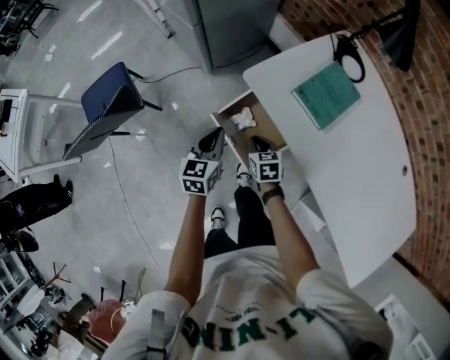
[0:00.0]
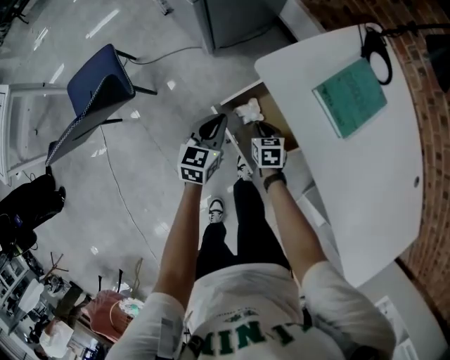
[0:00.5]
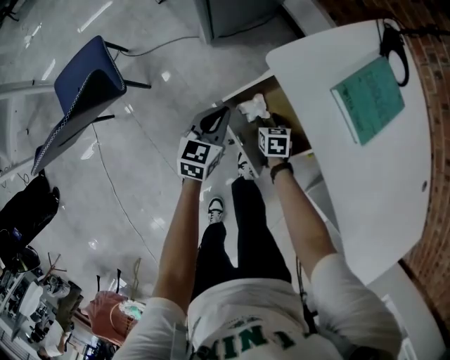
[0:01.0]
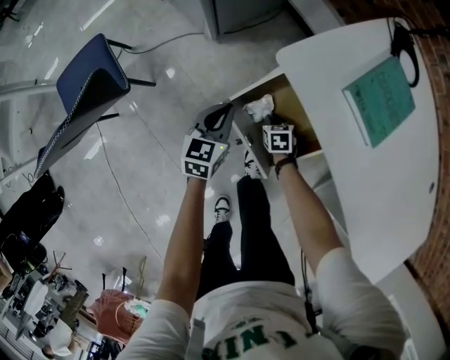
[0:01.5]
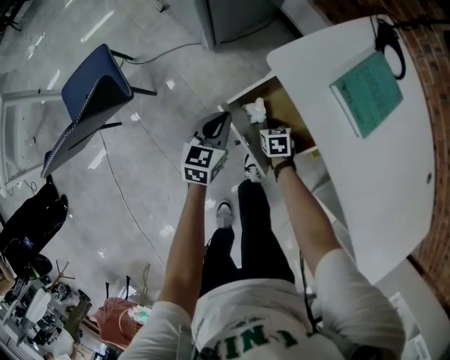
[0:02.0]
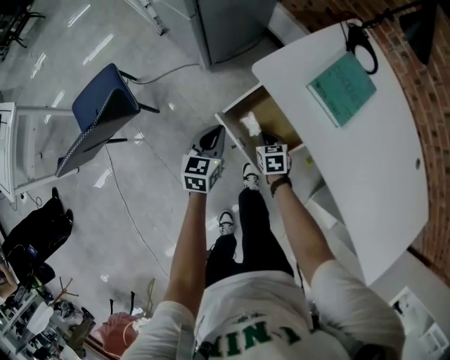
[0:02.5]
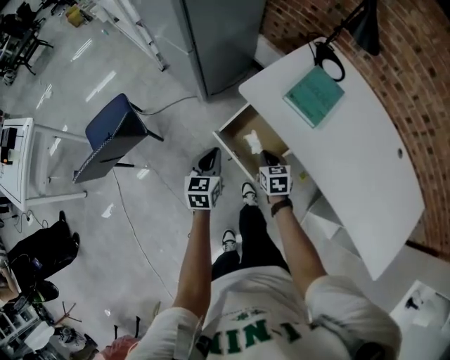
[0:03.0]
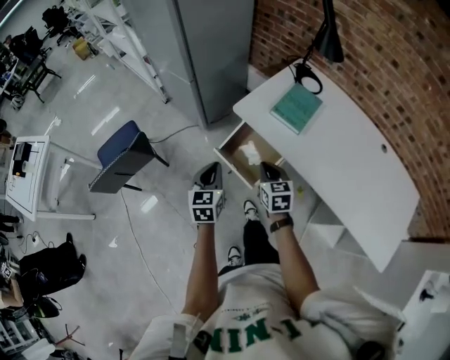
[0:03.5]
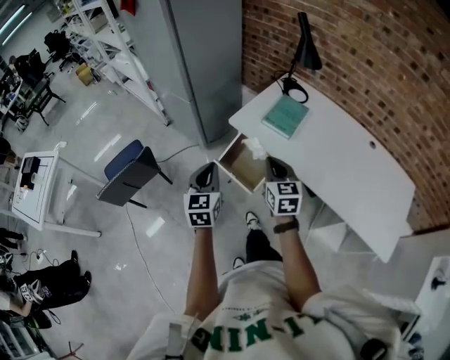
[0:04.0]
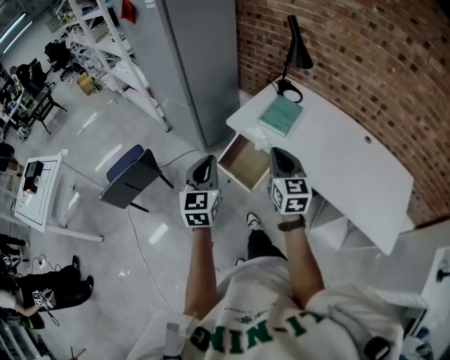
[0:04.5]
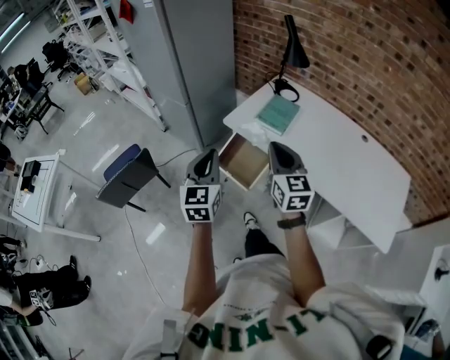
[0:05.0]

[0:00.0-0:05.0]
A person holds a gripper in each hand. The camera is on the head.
0:00.0 to 0:02.5: Both grippers move downward, approximately 10 cm. The right gripper opens, then closes again.
0:02.5 to 0:05.0: Both grippers move upward and backward, roughly 50 cm. The right gripper tips its fingers upward by about 50 degrees; the left gripper turns by approximately 30 degrees.

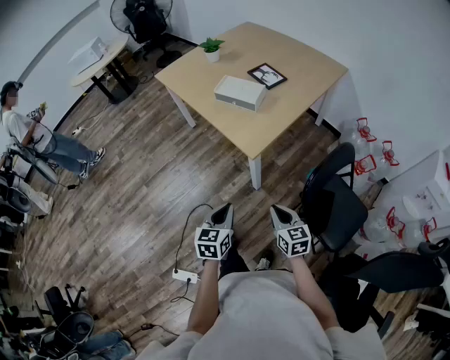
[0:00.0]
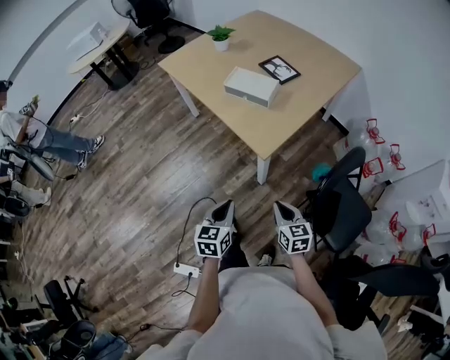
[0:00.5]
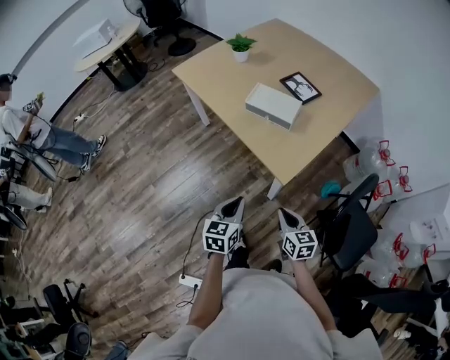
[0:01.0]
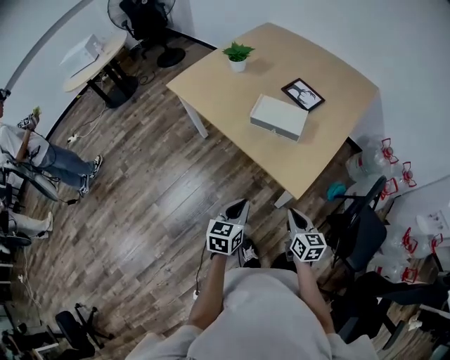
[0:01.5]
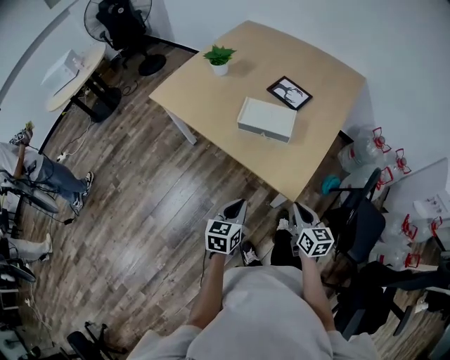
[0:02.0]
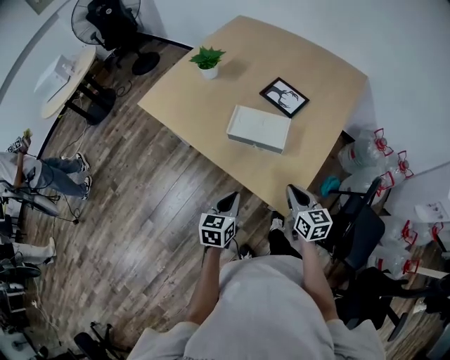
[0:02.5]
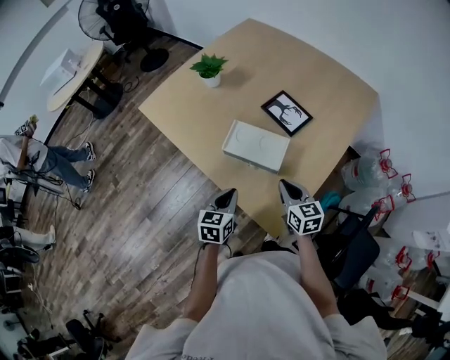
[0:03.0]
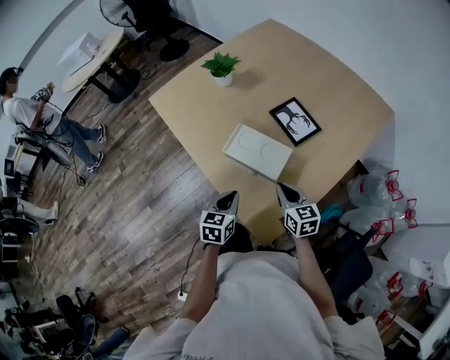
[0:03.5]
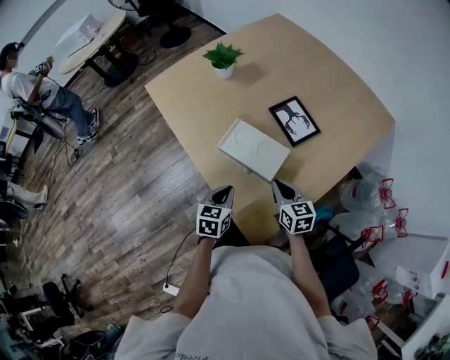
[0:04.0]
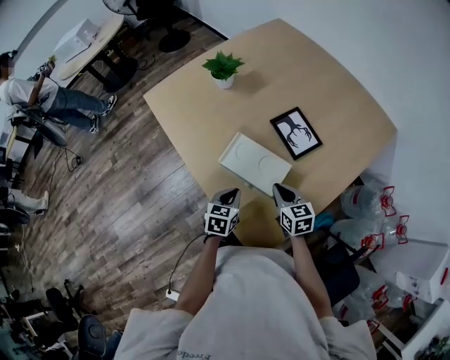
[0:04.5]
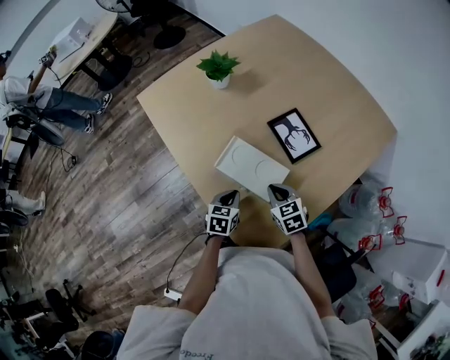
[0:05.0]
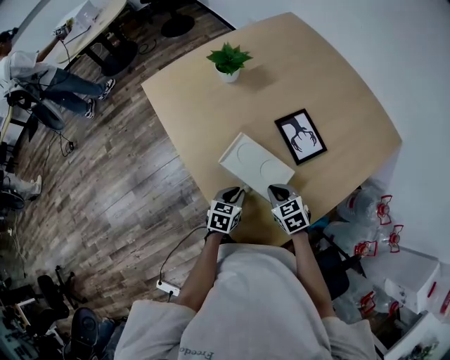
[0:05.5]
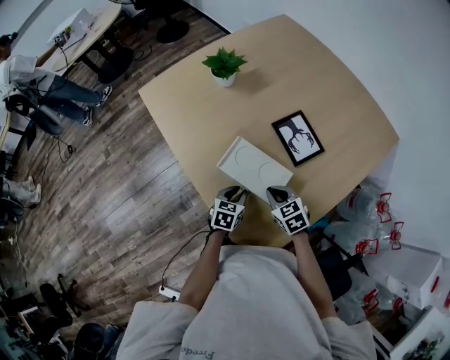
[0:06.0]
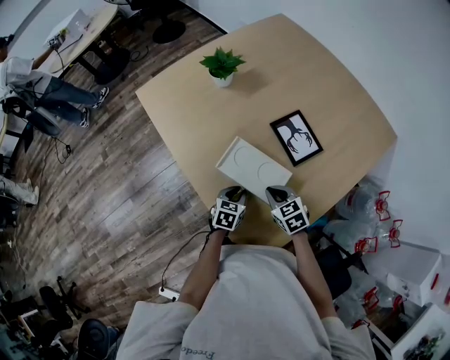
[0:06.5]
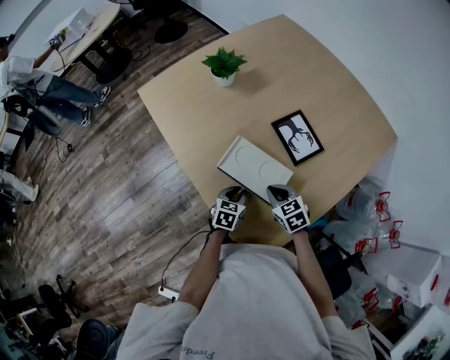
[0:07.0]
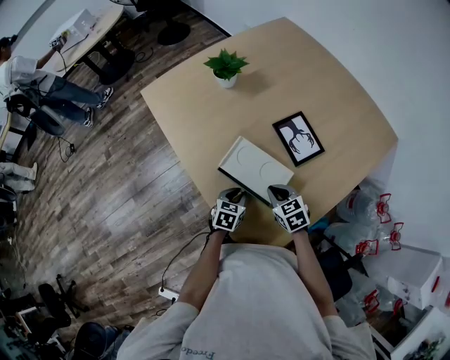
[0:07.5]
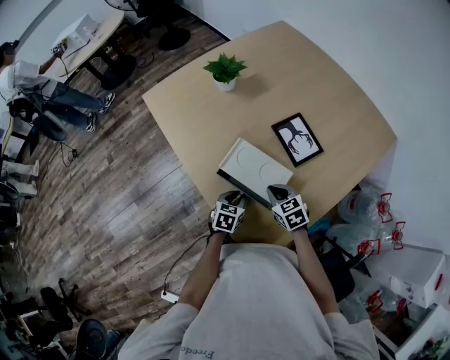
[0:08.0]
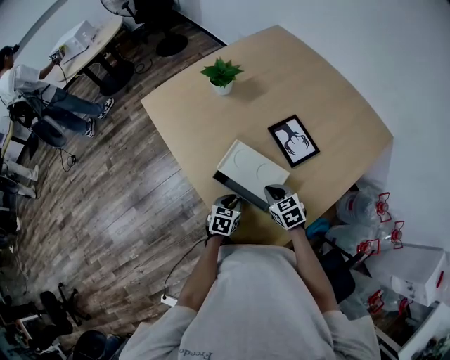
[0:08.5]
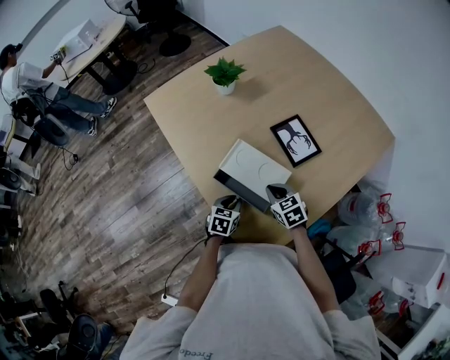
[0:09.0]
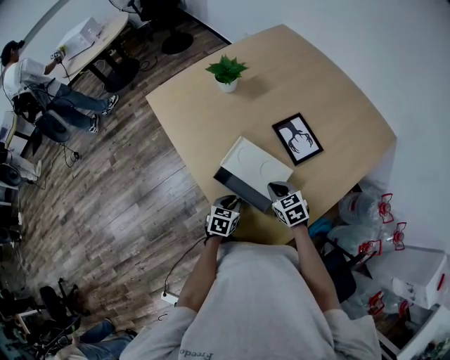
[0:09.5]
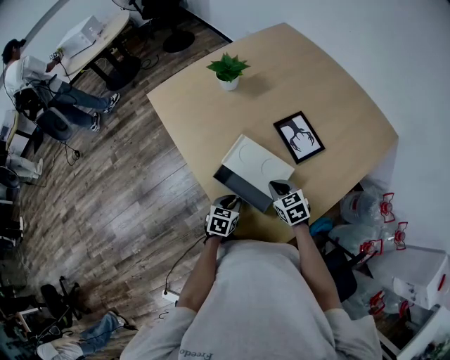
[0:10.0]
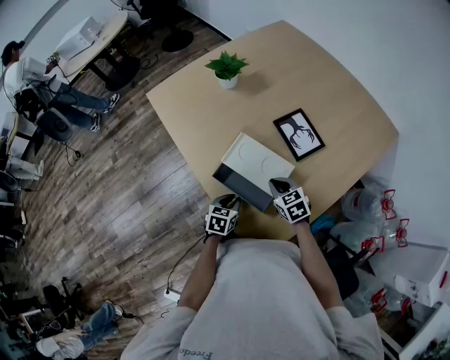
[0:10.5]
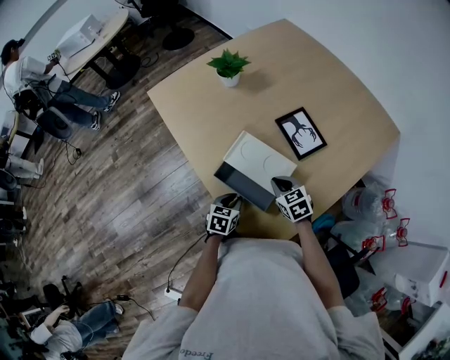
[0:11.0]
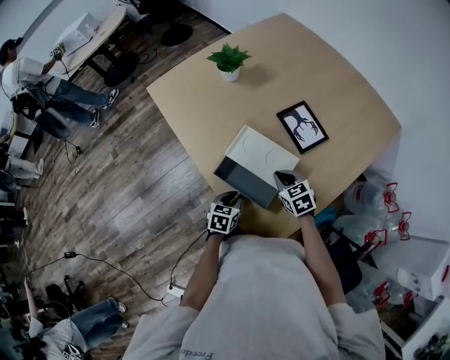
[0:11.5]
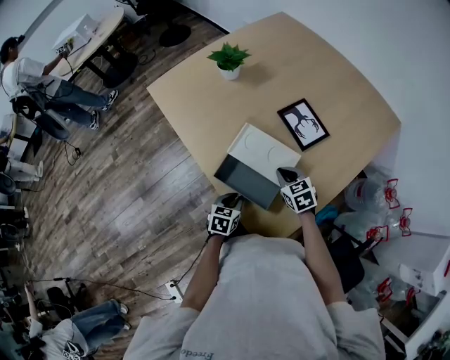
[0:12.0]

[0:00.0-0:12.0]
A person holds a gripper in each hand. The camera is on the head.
0:00.0 to 0:02.0: Both grippers travel together forward and to the left, about 30 cm. The right gripper changes its angle by approximately 20 degrees.
0:02.0 to 0:04.0: The right gripper is displaced forward by some 30 cm, and swivels some 20 degrees. The left gripper shifts approximately 25 cm forward and to the right.
0:04.0 to 0:06.0: The left gripper shifts approximately 10 cm downward and forward, and opens up. Meanwhile the right gripper is displaced forward by about 5 cm, and swivels some 30 degrees.
0:06.0 to 0:10.0: There are only small adjustments of the grippers.
0:10.0 to 0:12.0: The grippers make only small movements.

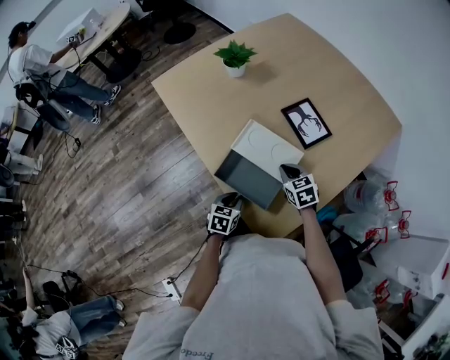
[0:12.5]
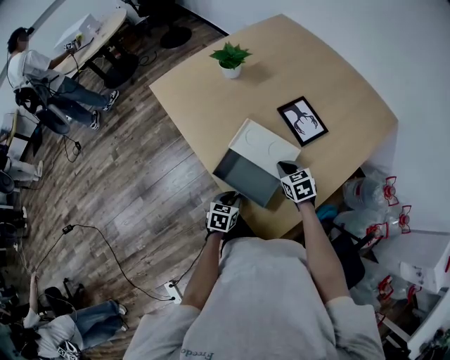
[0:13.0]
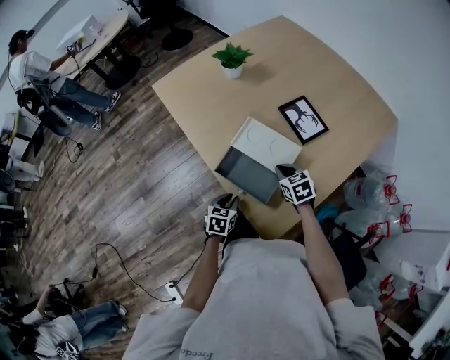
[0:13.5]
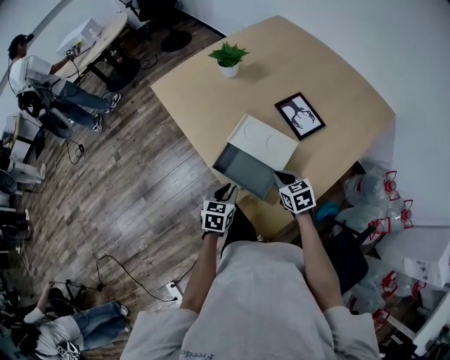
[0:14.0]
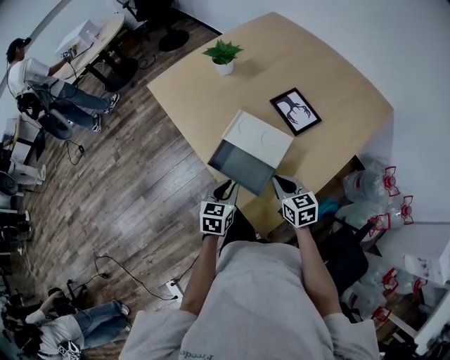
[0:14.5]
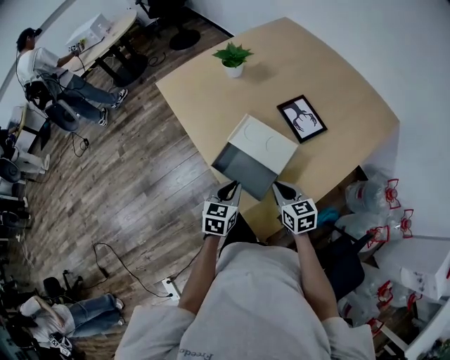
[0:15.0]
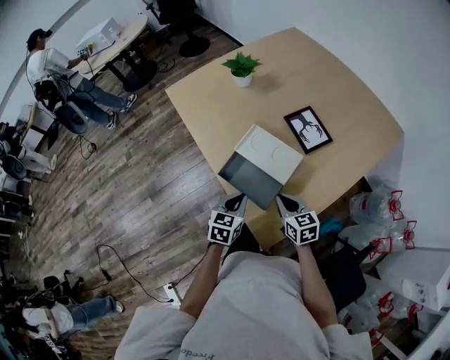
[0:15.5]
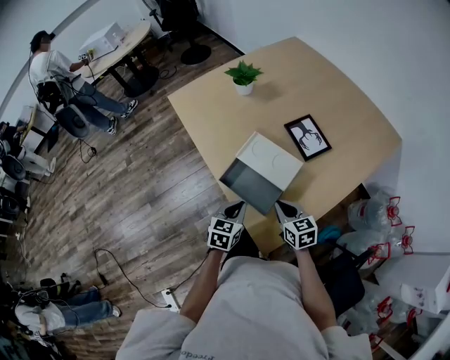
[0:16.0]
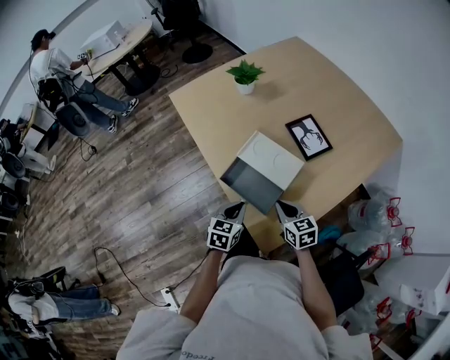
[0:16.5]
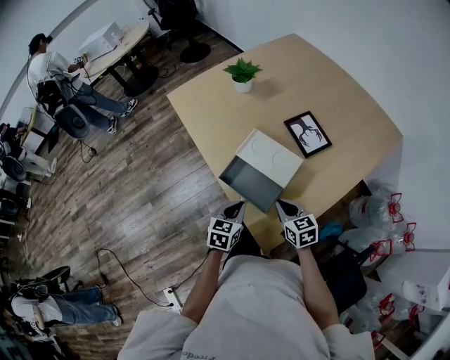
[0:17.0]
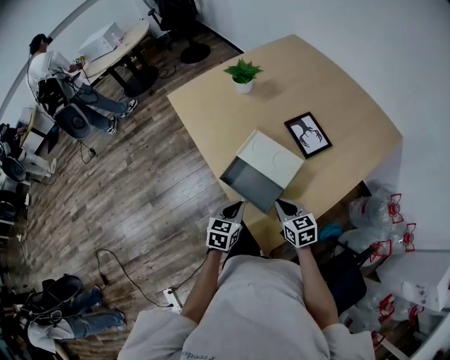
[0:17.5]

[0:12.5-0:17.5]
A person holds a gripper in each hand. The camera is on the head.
0:12.5 to 0:15.0: The right gripper moves backward, about 10 cm. The left gripper moves upward, some 10 cm.
0:15.0 to 0:17.5: The grippers stay close to where they were, moving slightly.

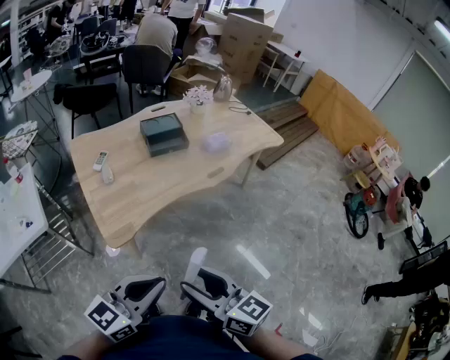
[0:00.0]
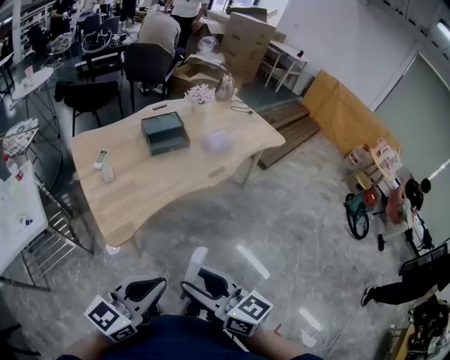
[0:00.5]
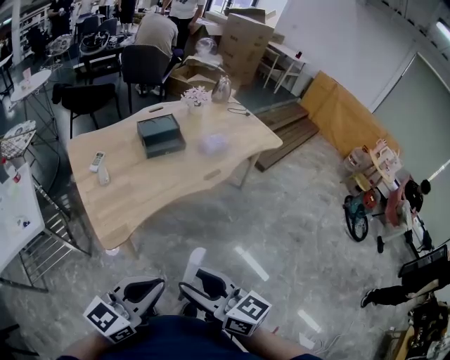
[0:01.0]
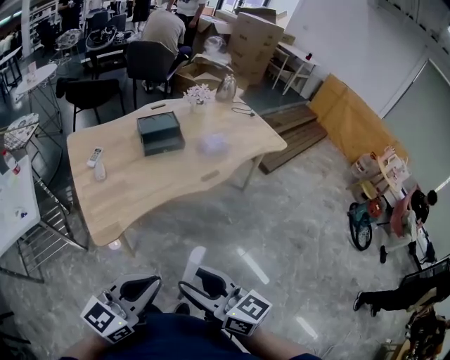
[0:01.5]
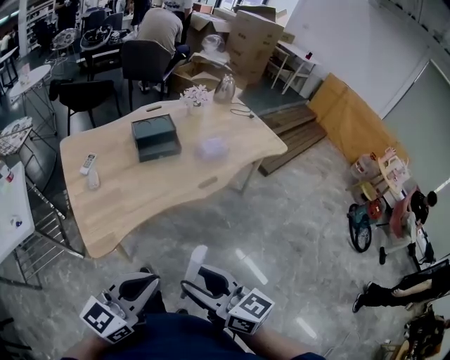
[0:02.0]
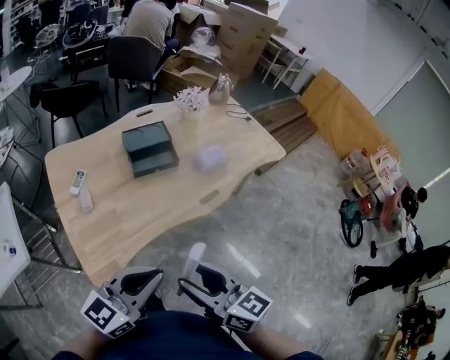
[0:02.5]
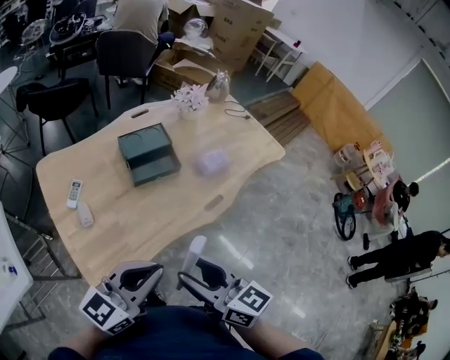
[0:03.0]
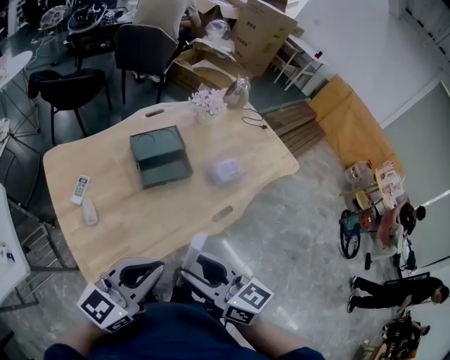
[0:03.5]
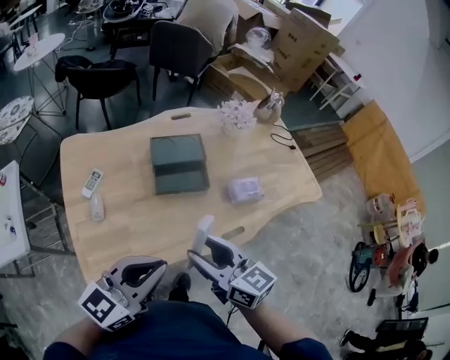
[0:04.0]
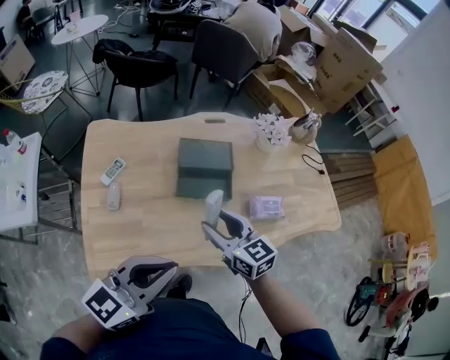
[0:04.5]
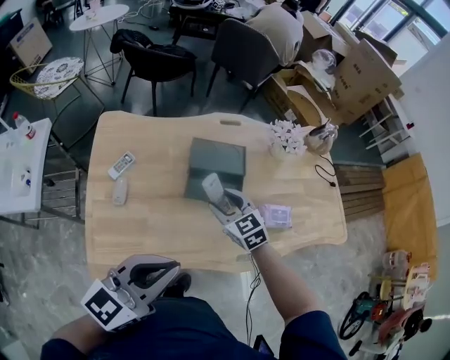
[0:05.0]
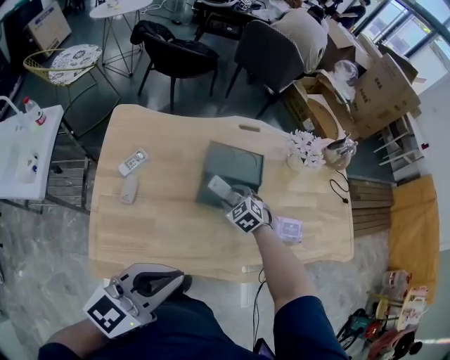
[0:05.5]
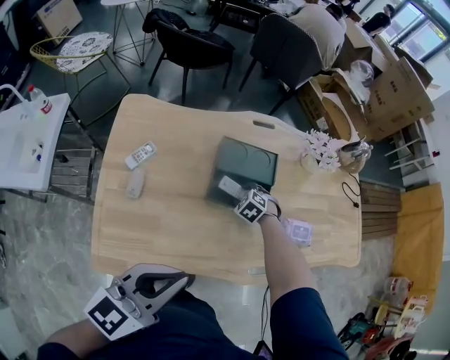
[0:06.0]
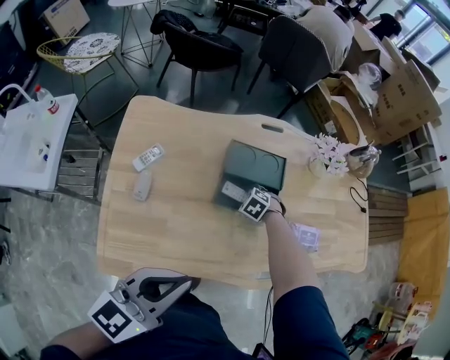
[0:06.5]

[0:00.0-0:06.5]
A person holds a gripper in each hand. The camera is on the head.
0:00.0 to 0:02.0: The grippers both shift forward and to the right by some 15 cm.
0:02.0 to 0:04.5: The two grippers go some 40 cm forward. The right gripper turns by roughly 30 degrees.
0:04.5 to 0:06.5: The left gripper is displaced downward by approximately 5 cm. Meanwhile the right gripper is displaced downward by approximately 30 cm, and tilts its fingers roughly 60 degrees downward.
